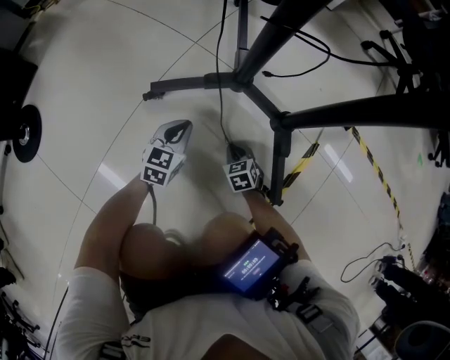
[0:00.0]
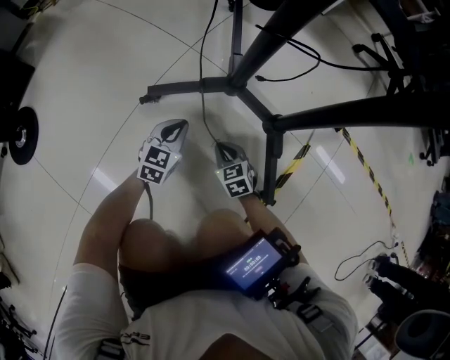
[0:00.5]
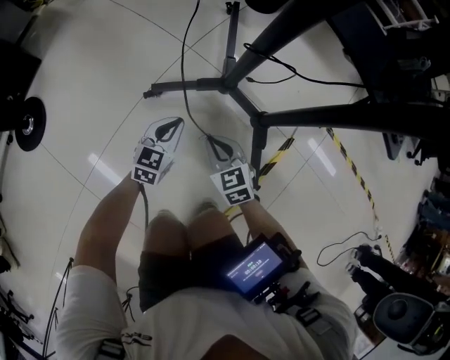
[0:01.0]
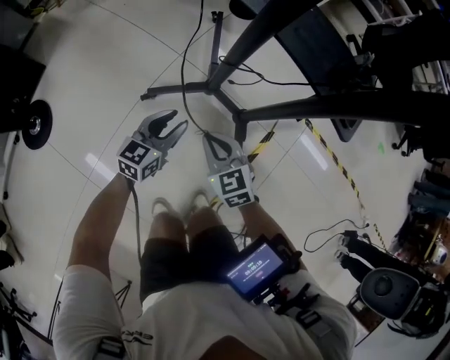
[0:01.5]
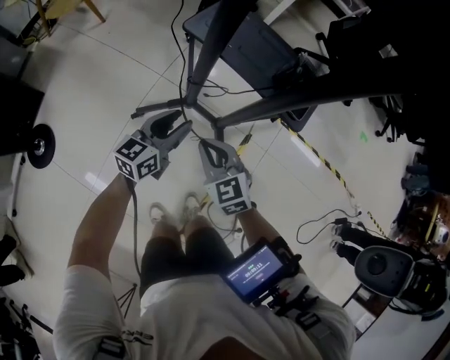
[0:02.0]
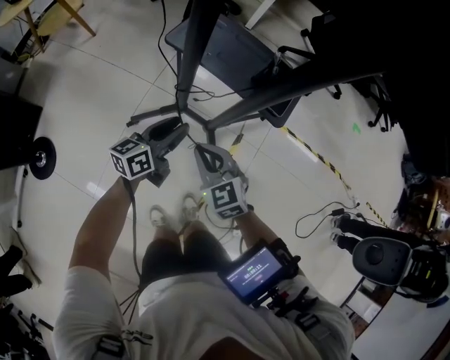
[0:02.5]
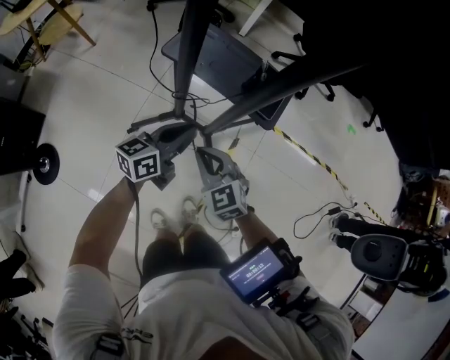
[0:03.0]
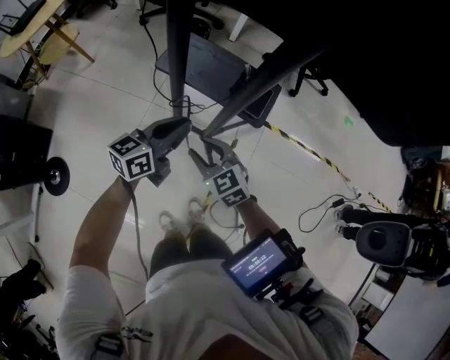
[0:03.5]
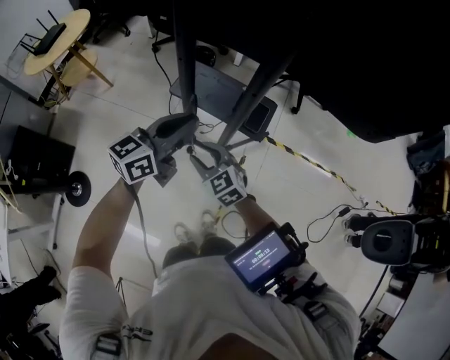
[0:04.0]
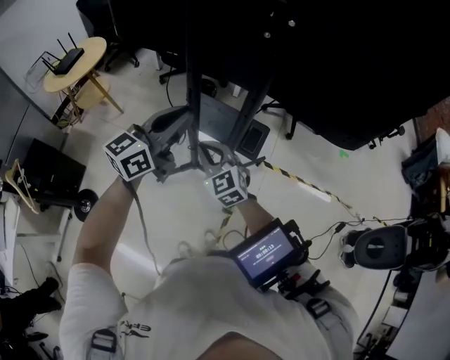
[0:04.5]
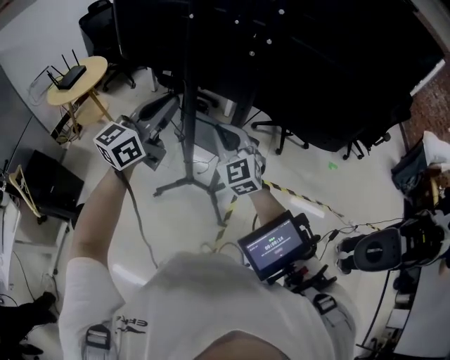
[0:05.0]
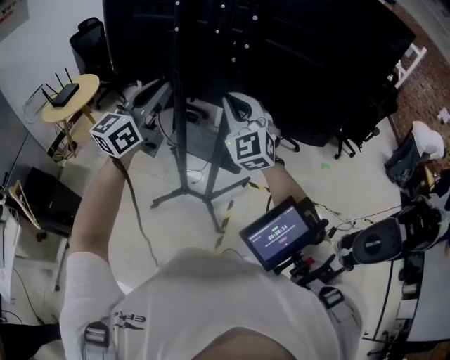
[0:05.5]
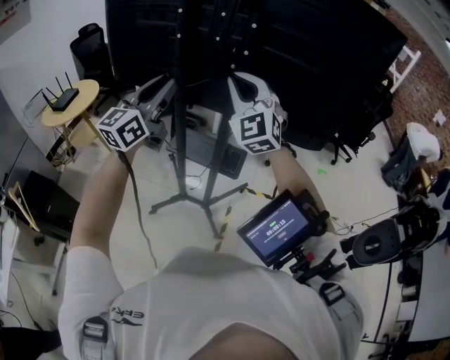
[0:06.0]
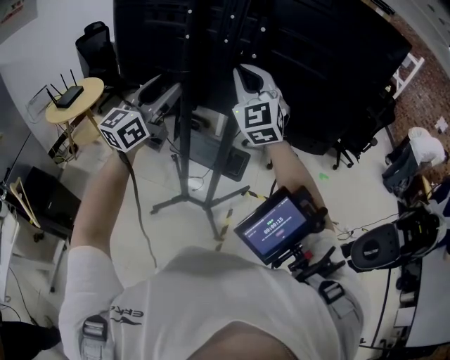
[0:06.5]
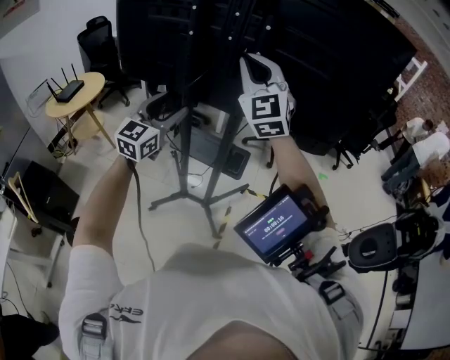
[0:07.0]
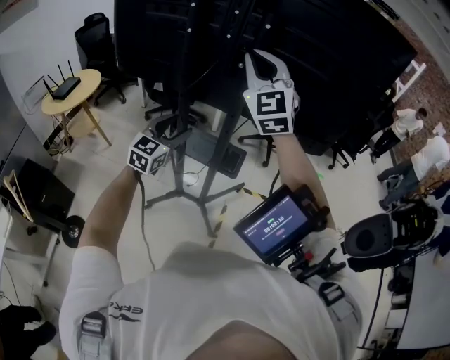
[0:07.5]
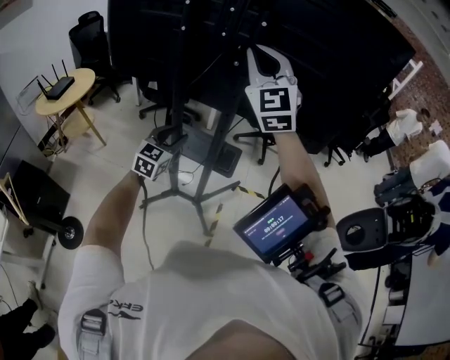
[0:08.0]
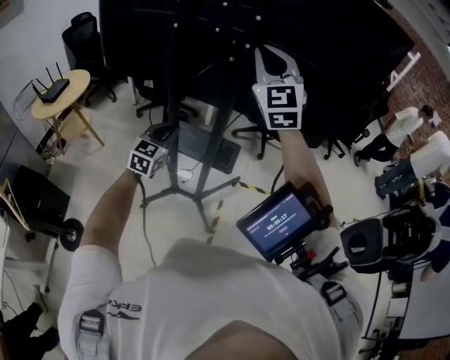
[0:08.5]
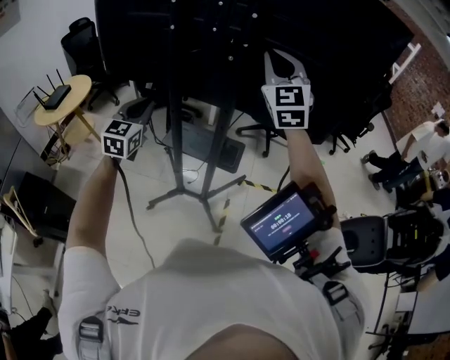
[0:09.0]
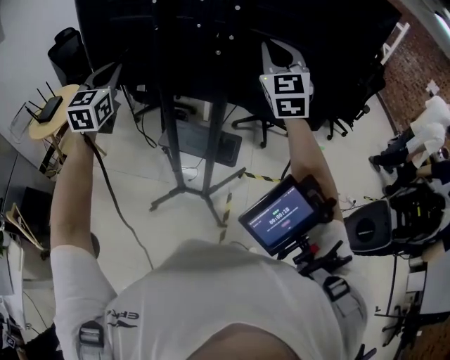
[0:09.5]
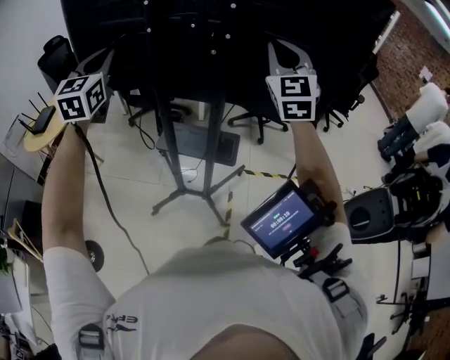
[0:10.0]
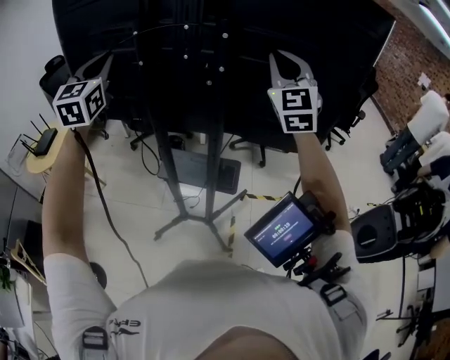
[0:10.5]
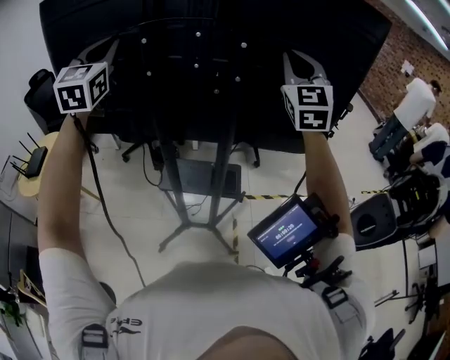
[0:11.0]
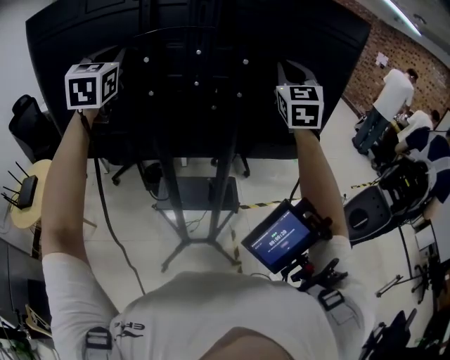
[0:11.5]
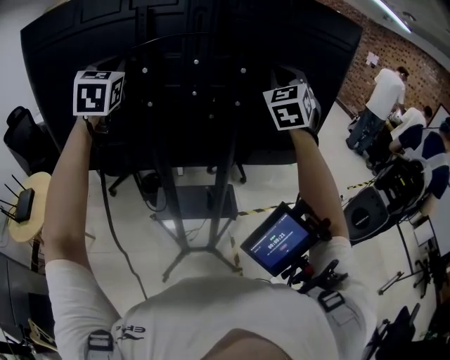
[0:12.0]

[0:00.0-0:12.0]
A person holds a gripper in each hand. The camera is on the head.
0:00.0 to 0:02.0: The grippers both shift upward by approximately 50 cm. The right gripper turns by approximately 20 degrees. The left gripper rotates approximately 30 degrees, and opens its fingers.
0:02.0 to 0:04.0: The left gripper heads upward, covering approximately 40 cm, and closes its fingers, while the right gripper is displaced upward by roughly 20 cm, and opens up.
0:04.0 to 0:06.0: The left gripper shifts roughly 30 cm upward, and turns by some 30 degrees. The right gripper is displaced upward by roughly 50 cm, tips its fingers upward by about 40 degrees, and closes up.
0:06.0 to 0:08.0: The right gripper heads upward, covering some 5 cm, while the left gripper moves downward, roughly 25 cm, angles its fingers downward, by about 30 degrees, and opens, then closes again.
0:08.0 to 0:10.0: The right gripper goes some 10 cm to the right; the left gripper goes about 35 cm upward and to the left, rotates some 20 degrees, and closes its fingers.
0:10.0 to 0:12.0: The right gripper goes about 10 cm forward and upward, and rotates roughly 30 degrees. Meanwhile the left gripper is displaced forward and upward by approximately 20 cm.

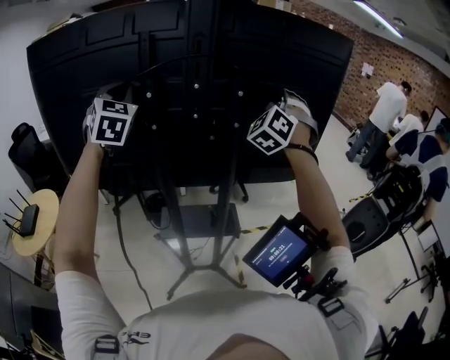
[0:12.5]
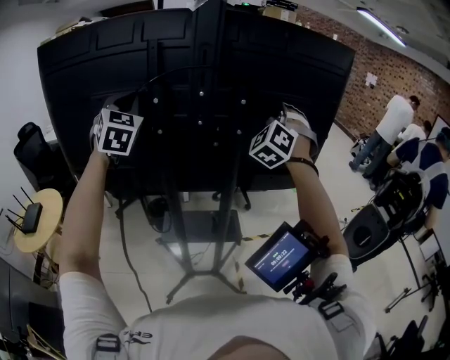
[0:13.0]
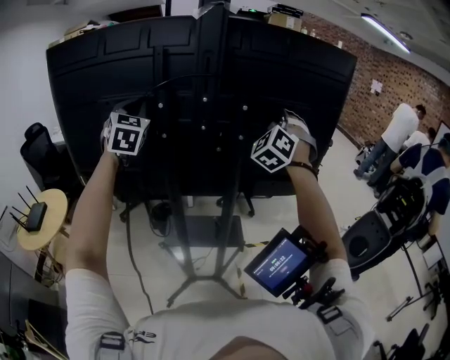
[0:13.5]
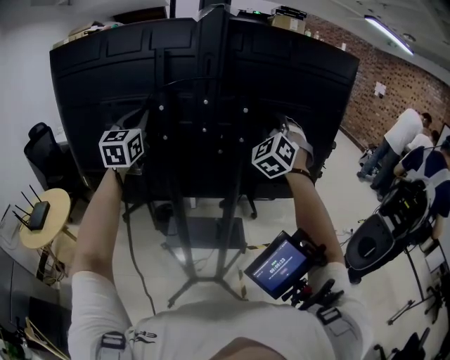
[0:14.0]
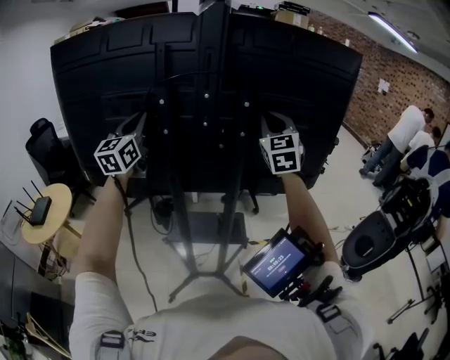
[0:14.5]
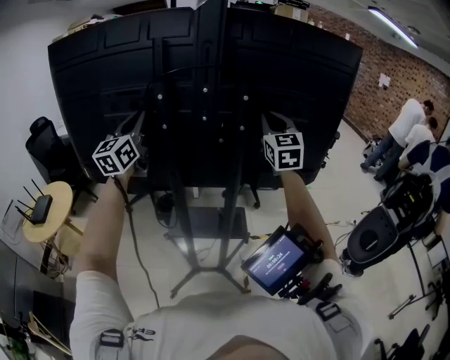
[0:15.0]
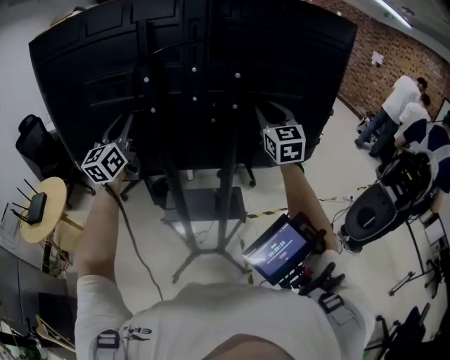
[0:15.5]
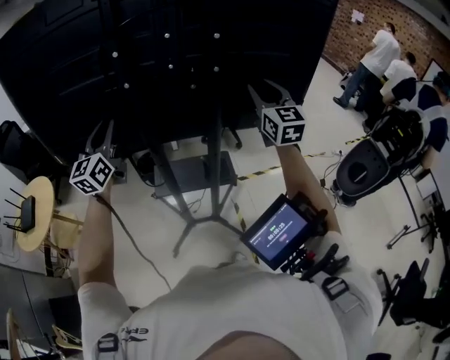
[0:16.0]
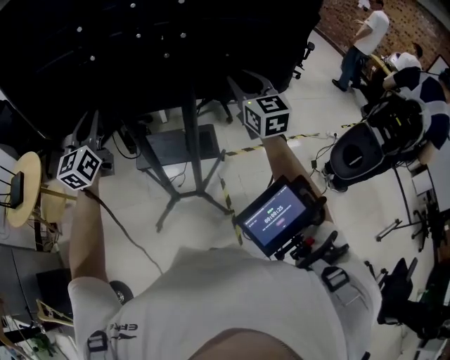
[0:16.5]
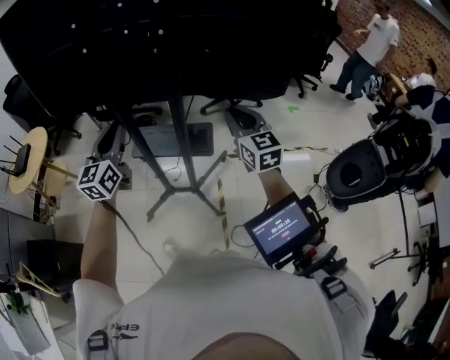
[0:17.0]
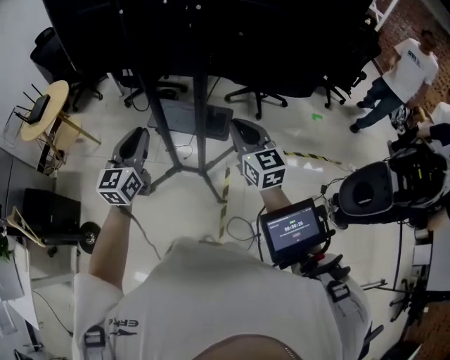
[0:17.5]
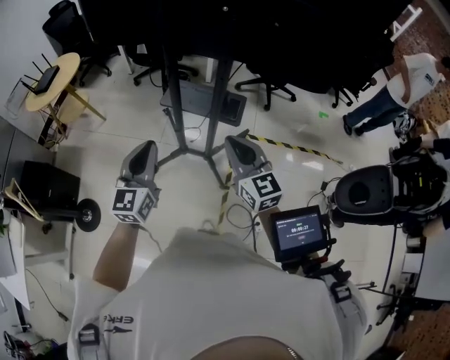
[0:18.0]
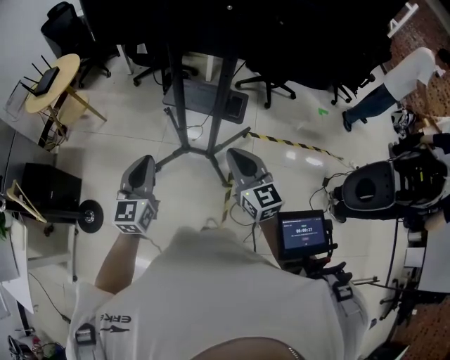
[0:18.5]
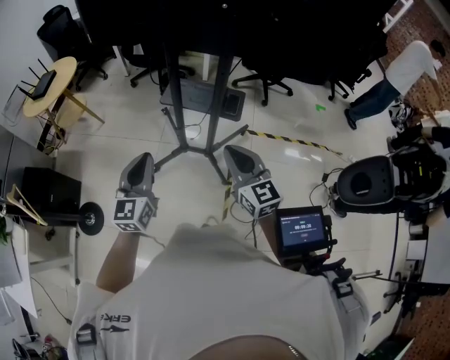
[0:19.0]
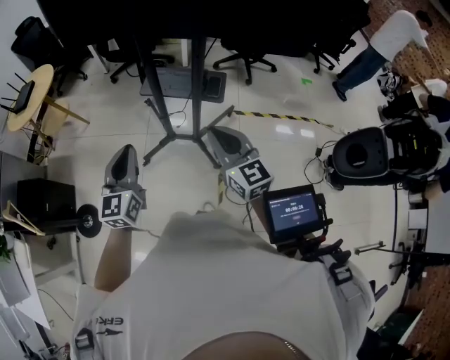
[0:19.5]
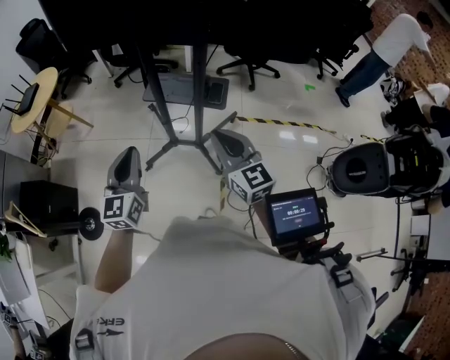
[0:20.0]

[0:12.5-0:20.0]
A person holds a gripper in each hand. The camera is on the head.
0:12.5 to 0:14.5: The left gripper travels downward by roughly 5 cm, and rotates approximately 40 degrees, while the right gripper rolls clockwise, seen from behind, by roughly 40 degrees.
0:14.5 to 0:16.5: The left gripper travels downward and backward by some 20 cm, while the right gripper travels downward by about 15 cm, and changes its angle by roughly 20 degrees.
0:16.5 to 0:18.0: The right gripper moves backward, downward and to the left, about 30 cm, swivels roughly 30 degrees, and closes up, while the left gripper shifts roughly 35 cm backward and downward.
0:18.0 to 0:20.0: The grippers make only small movements.

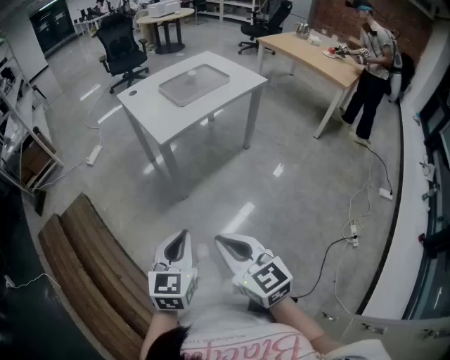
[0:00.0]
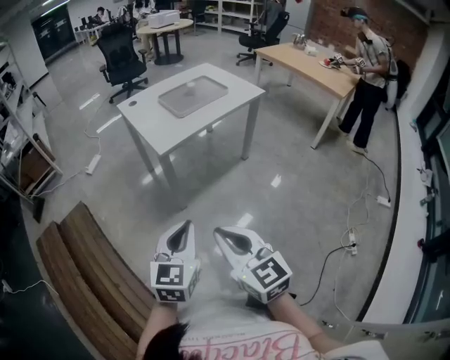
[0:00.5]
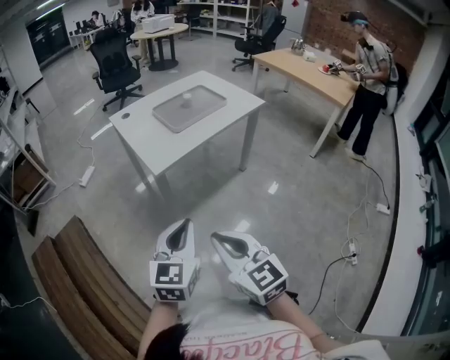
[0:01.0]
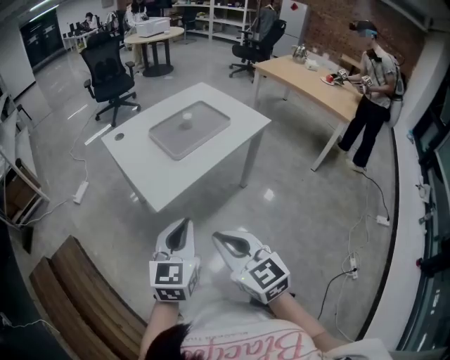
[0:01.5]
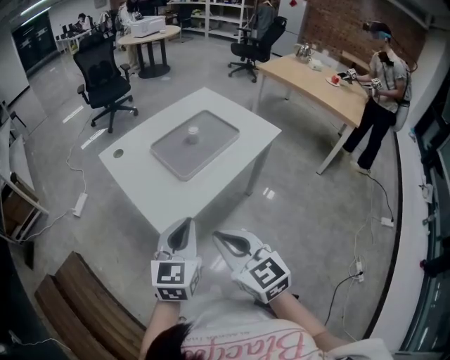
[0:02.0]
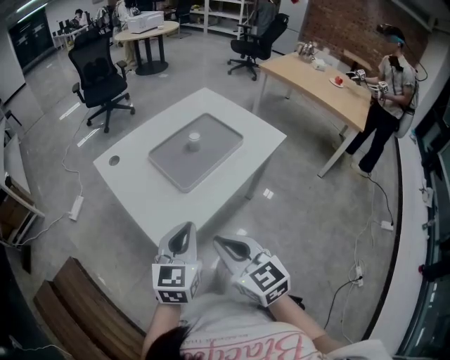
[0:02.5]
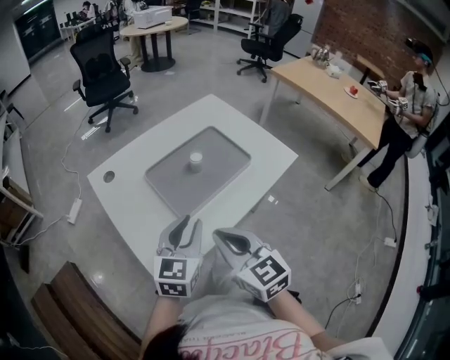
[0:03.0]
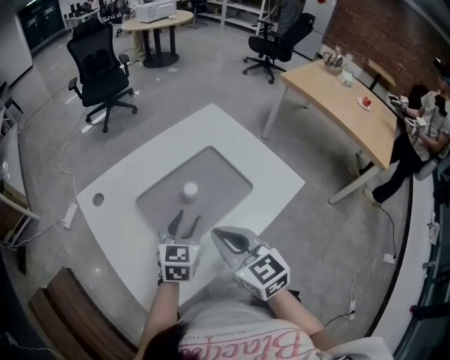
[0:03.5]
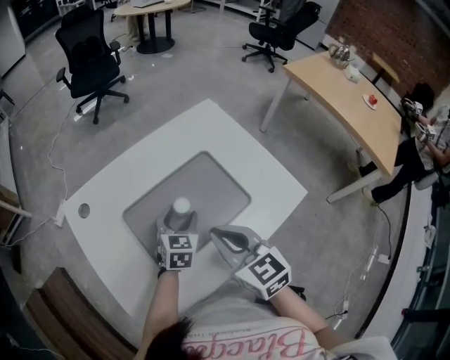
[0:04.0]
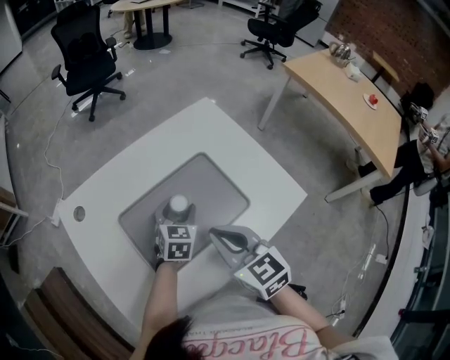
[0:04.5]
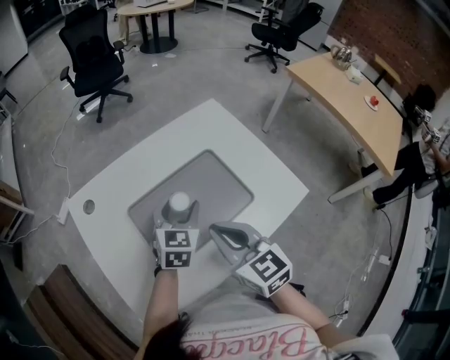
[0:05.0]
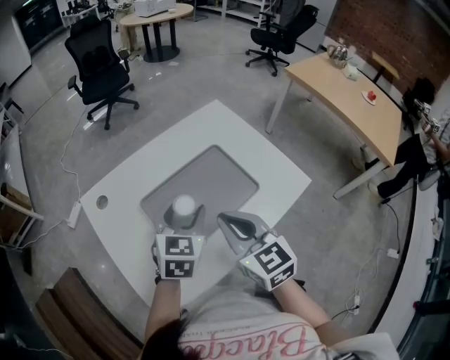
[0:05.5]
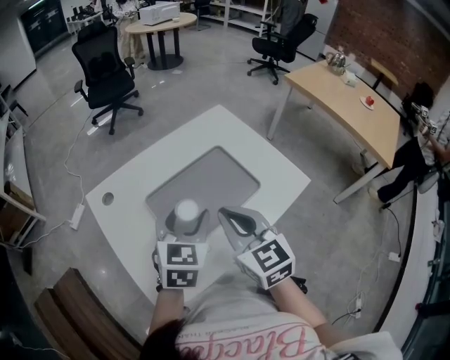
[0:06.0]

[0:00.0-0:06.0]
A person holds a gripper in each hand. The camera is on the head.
0:00.0 to 0:02.0: The two grippers go about 30 cm forward.
0:02.0 to 0:04.0: The left gripper travels forward and downward by roughly 40 cm, swivels approximately 20 degrees, and opens its fingers. The right gripper travels forward by approximately 30 cm.
0:04.0 to 0:06.0: The right gripper is displaced upward by about 5 cm, while the left gripper moves upward and backward, approximately 20 cm.

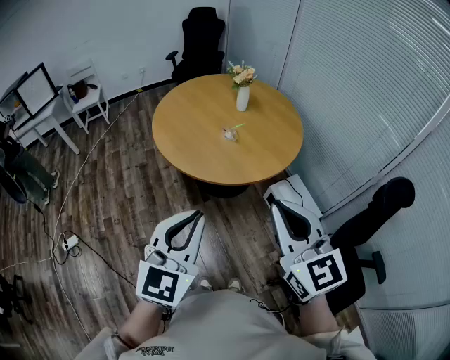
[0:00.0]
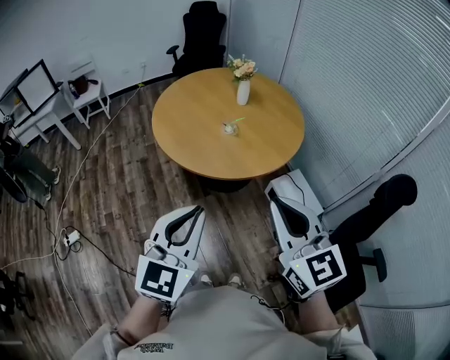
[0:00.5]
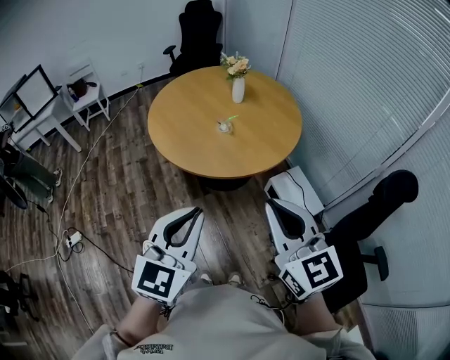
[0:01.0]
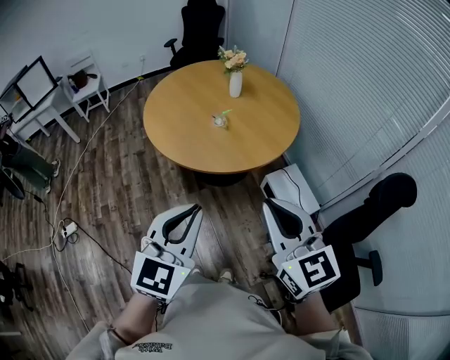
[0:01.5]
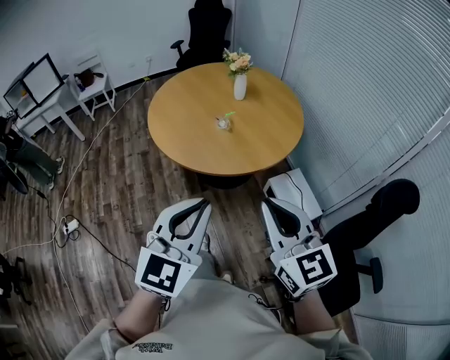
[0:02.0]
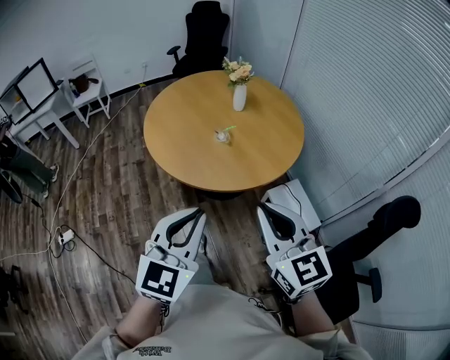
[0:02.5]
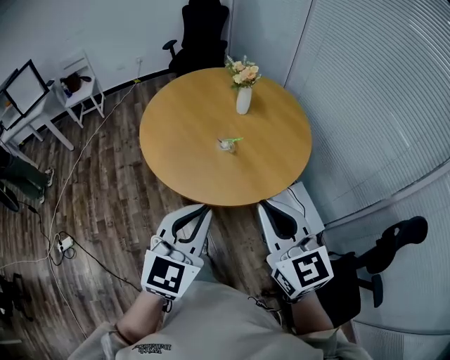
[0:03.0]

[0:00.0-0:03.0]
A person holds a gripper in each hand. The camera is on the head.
0:00.0 to 0:01.5: Both grippers move to the right, some 5 cm.
0:01.5 to 0:03.0: The grippers both shift forward by about 15 cm.
